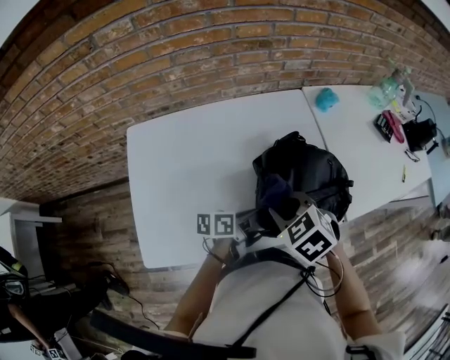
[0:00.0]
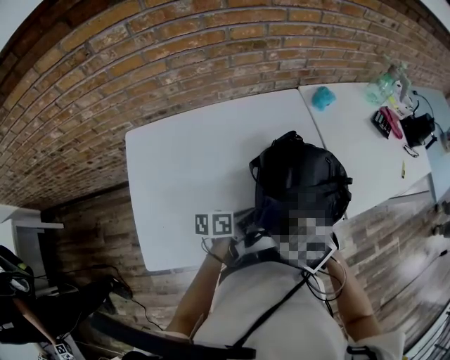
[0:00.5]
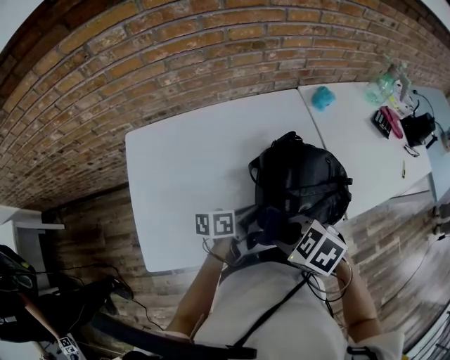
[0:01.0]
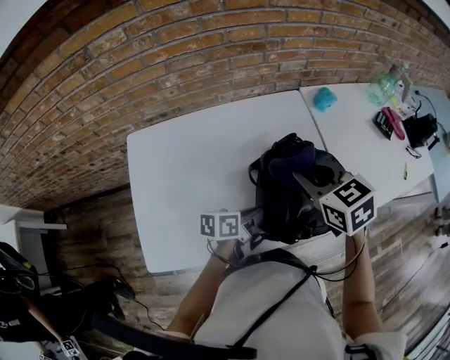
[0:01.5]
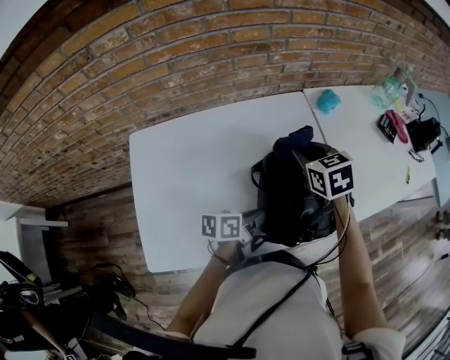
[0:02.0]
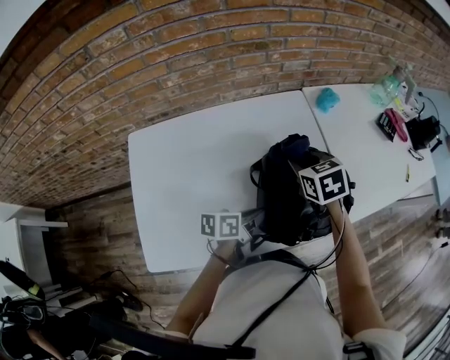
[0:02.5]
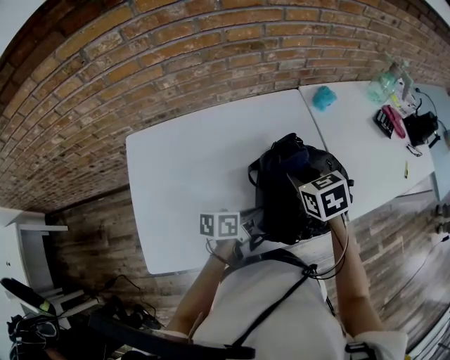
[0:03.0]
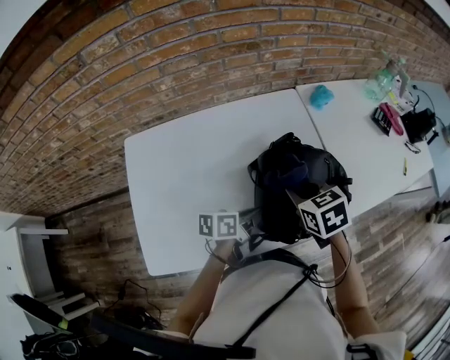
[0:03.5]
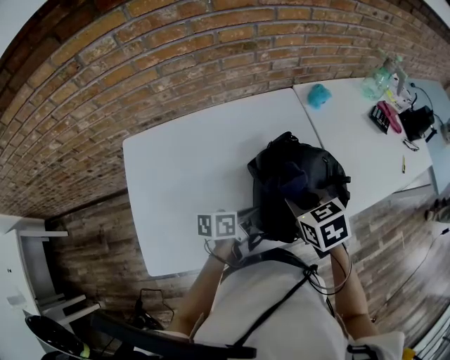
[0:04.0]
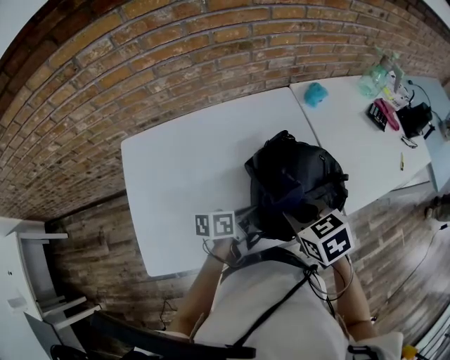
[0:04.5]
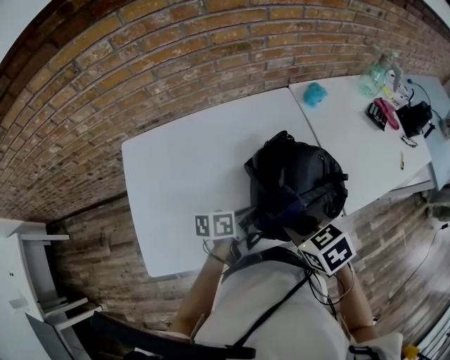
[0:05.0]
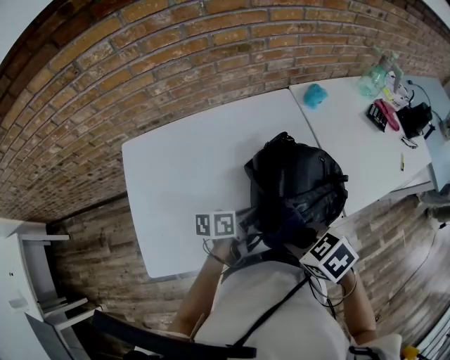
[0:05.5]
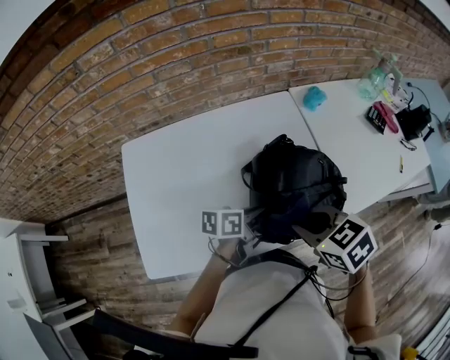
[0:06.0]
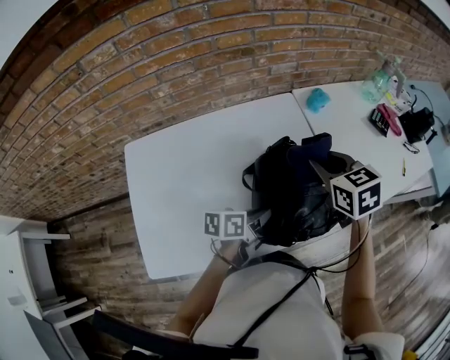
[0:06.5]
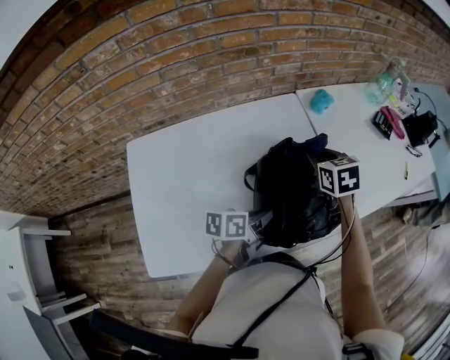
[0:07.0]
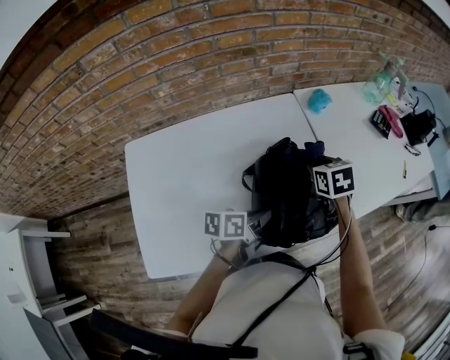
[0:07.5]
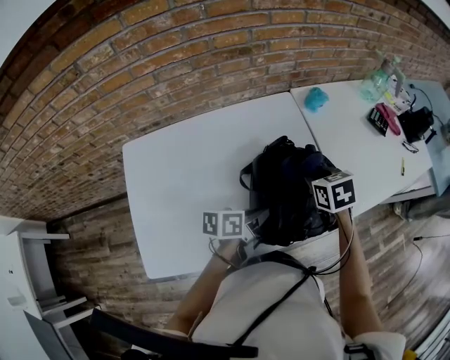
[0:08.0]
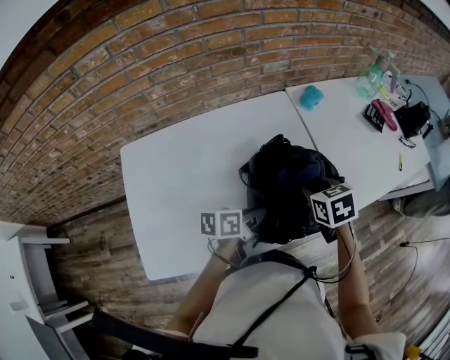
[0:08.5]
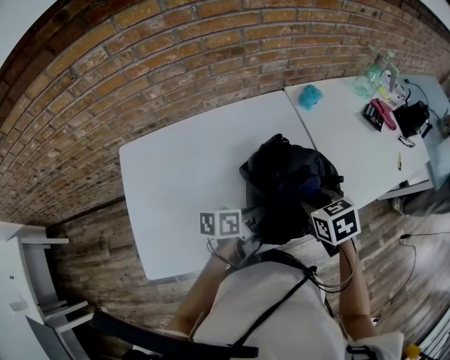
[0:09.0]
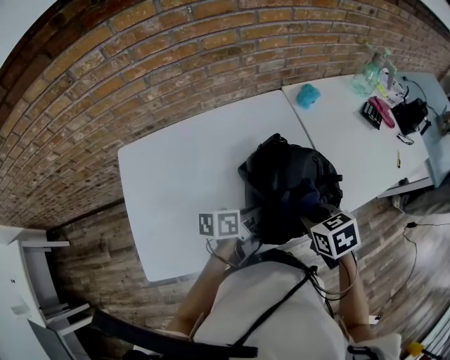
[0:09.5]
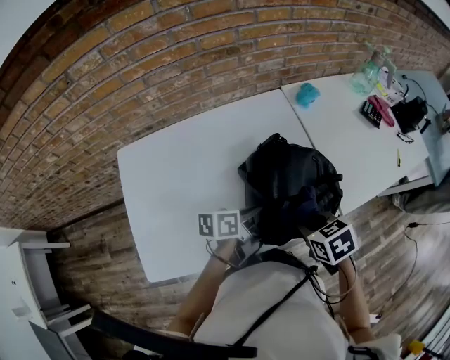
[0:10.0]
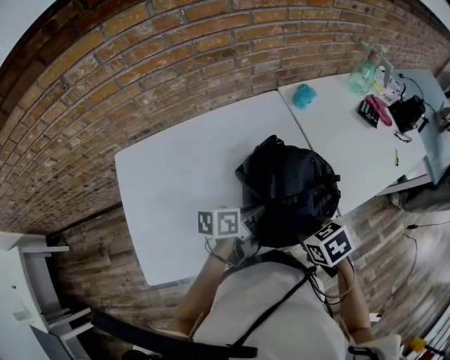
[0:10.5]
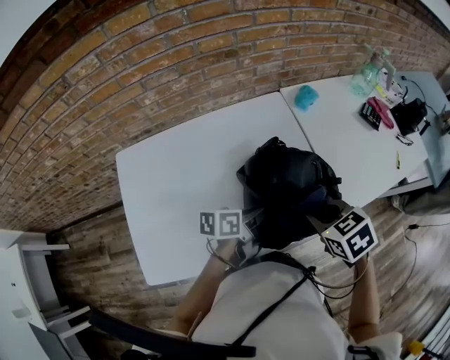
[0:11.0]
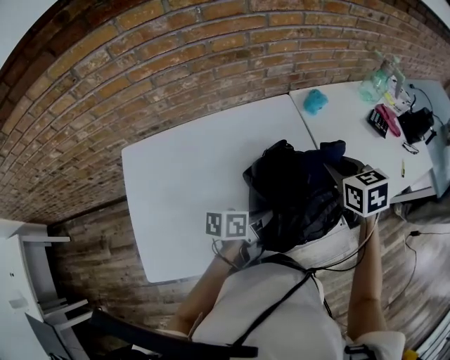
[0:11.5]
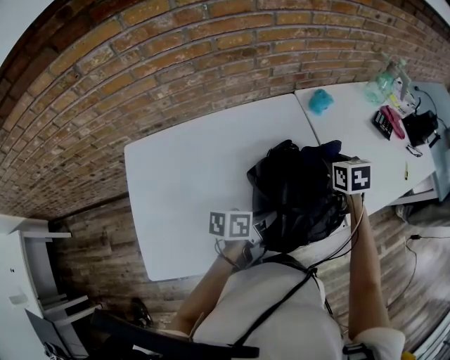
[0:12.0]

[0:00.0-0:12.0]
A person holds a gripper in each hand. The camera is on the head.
0:00.0 to 0:02.0: The right gripper reaches roughly 5 cm upward, then returns, and swivels roughly 30 degrees.
0:02.0 to 0:04.0: The right gripper shifts roughly 15 cm backward.
0:04.0 to 0:06.0: The right gripper heads backward and upward, covering about 10 cm.
0:06.0 to 0:08.0: The right gripper heads forward and downward, covering some 20 cm, and changes its angle by approximately 20 degrees.
0:08.0 to 0:10.0: The right gripper moves backward, roughly 15 cm.
0:10.0 to 0:12.0: The right gripper shifts roughly 20 cm forward, and changes its angle by roughly 20 degrees.

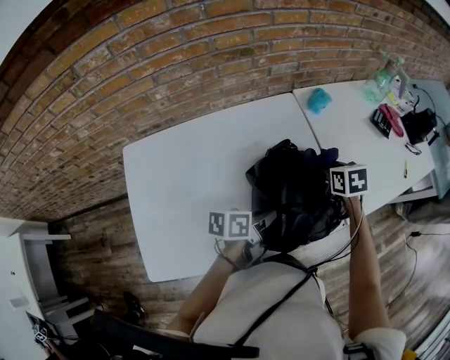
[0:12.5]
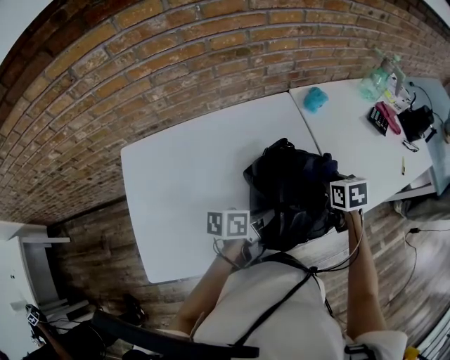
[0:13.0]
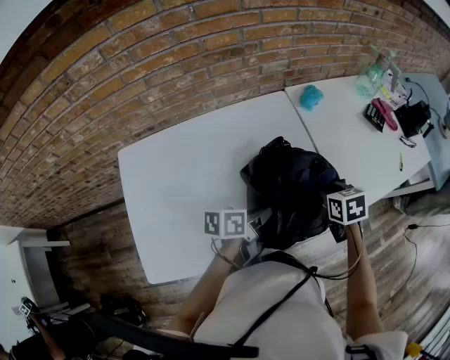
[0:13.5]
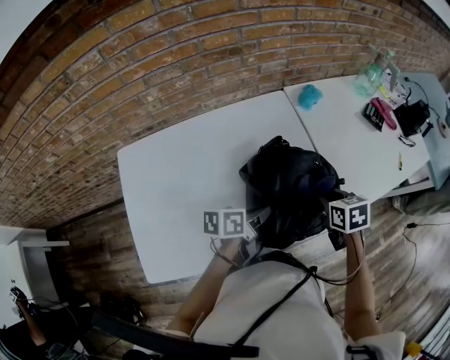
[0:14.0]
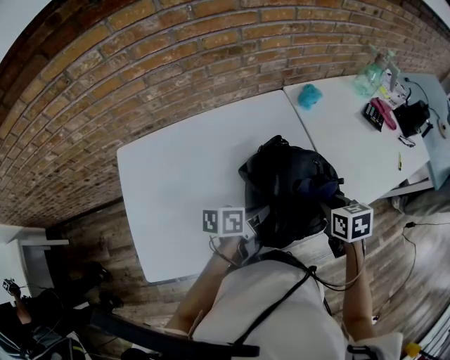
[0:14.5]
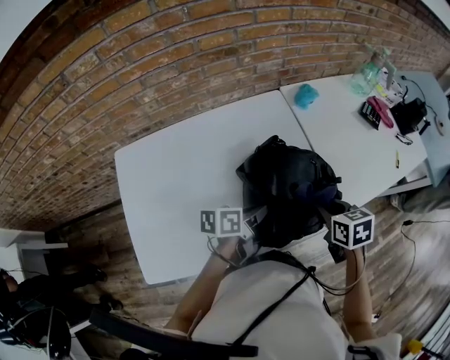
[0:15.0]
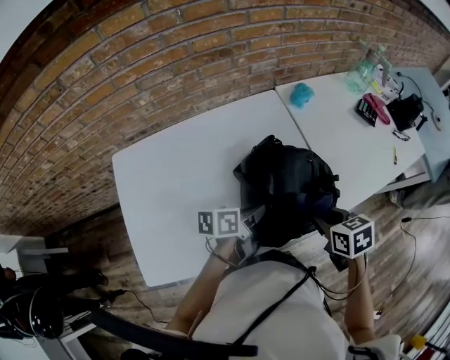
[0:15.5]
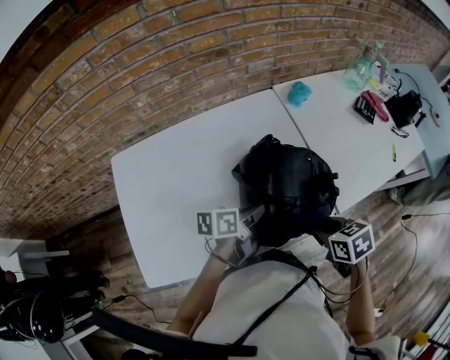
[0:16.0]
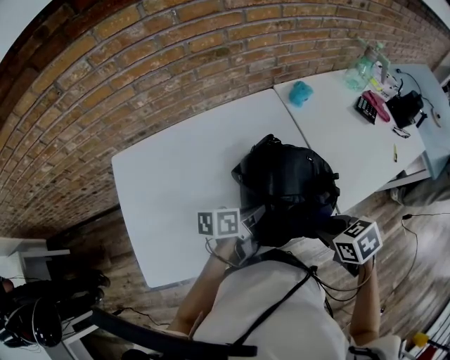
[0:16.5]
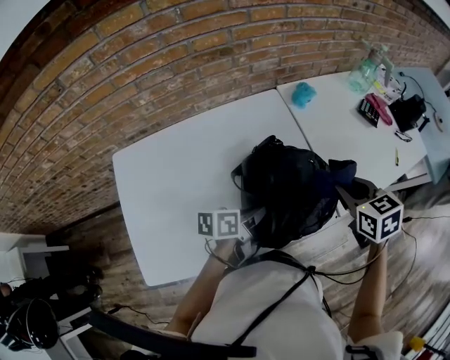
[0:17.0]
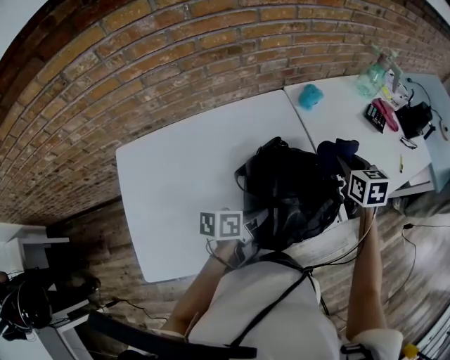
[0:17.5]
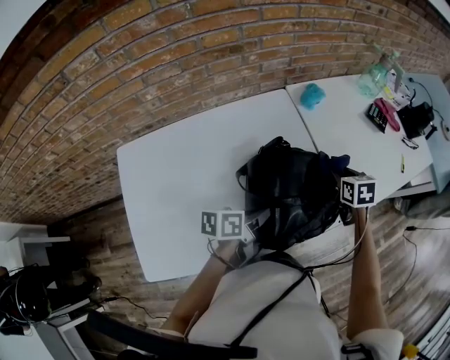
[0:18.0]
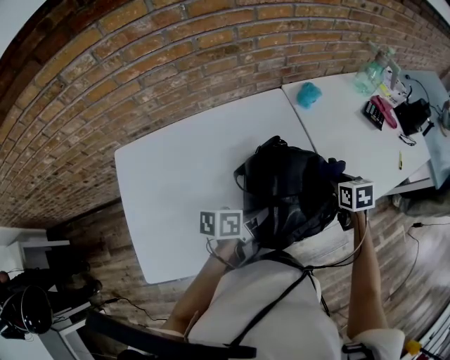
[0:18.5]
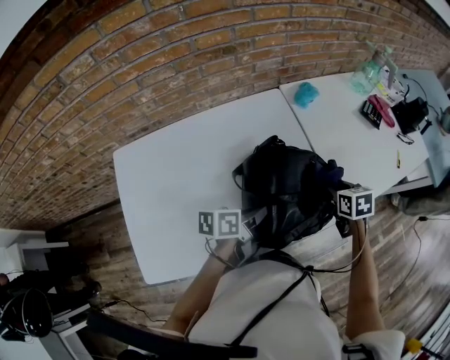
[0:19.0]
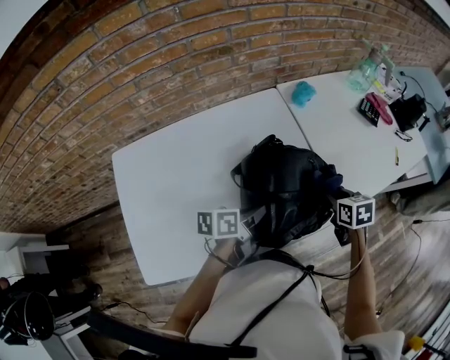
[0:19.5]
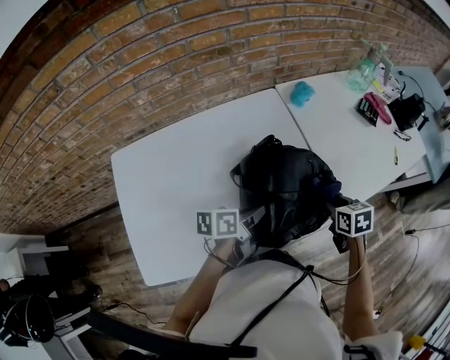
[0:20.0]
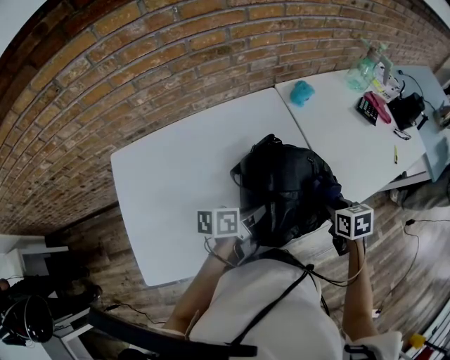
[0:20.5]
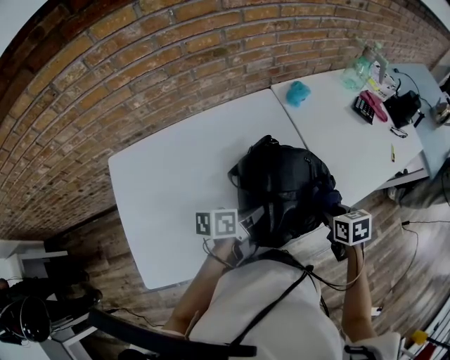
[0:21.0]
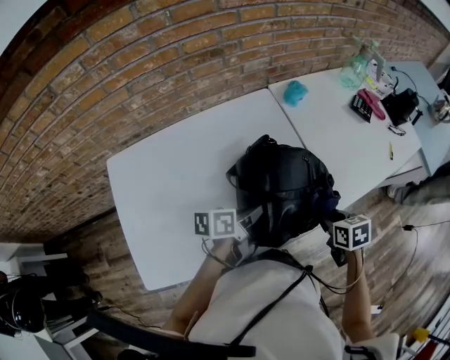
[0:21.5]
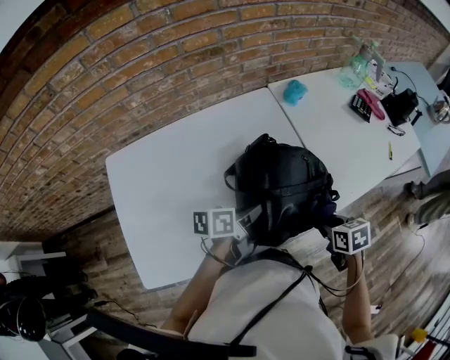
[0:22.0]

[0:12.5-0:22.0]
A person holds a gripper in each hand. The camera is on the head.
0:12.5 to 0:14.5: The right gripper shifts approximately 10 cm backward.
0:14.5 to 0:16.5: The right gripper goes about 10 cm backward, and turns by about 20 degrees.
0:16.5 to 0:18.0: The right gripper moves forward, approximately 20 cm, and swivels approximately 30 degrees.
0:18.0 to 0:20.0: The right gripper heads backward, covering approximately 10 cm.
0:20.0 to 0:22.0: The right gripper is displaced backward by about 10 cm.

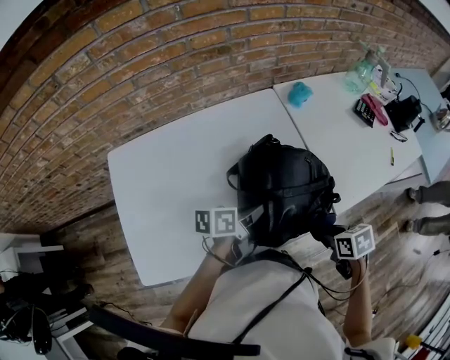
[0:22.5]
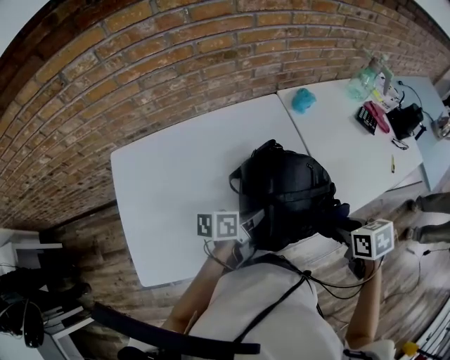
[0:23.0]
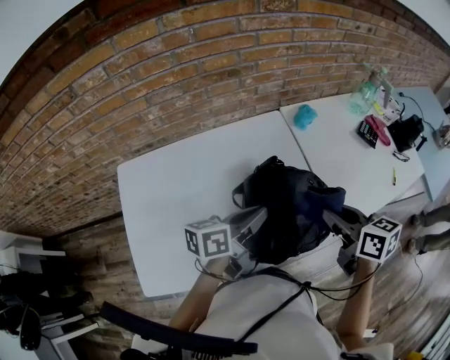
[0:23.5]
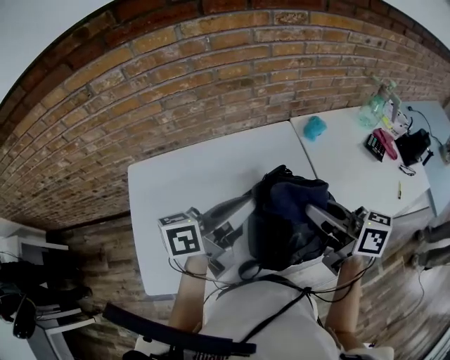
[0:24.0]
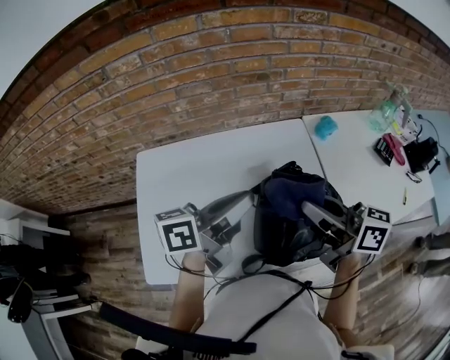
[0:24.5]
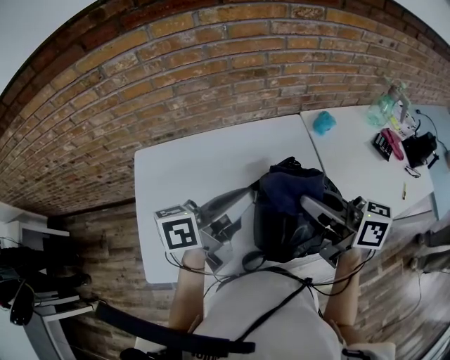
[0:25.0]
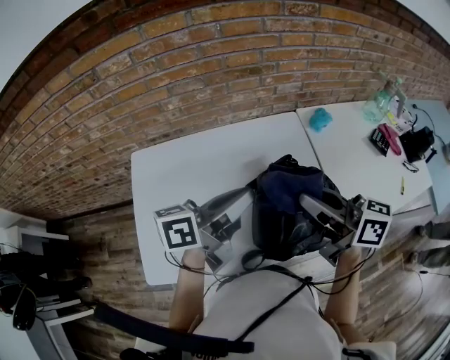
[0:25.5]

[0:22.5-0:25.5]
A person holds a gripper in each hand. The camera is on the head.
0:22.5 to 0:24.0: The left gripper is displaced upward by about 20 cm, and turns by roughly 30 degrees. The right gripper goes approximately 30 cm upward, to the left and forward, and tips its fingers upward by approximately 60 degrees.
0:24.0 to 0:25.5: The grippers make only small movements.

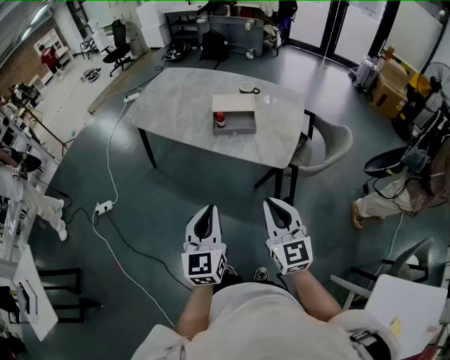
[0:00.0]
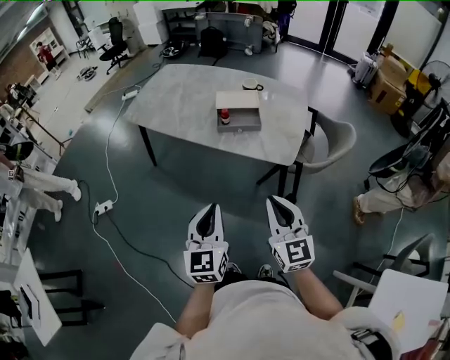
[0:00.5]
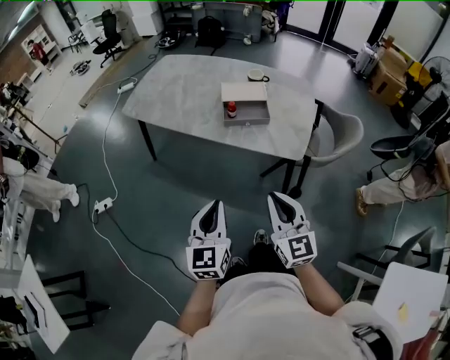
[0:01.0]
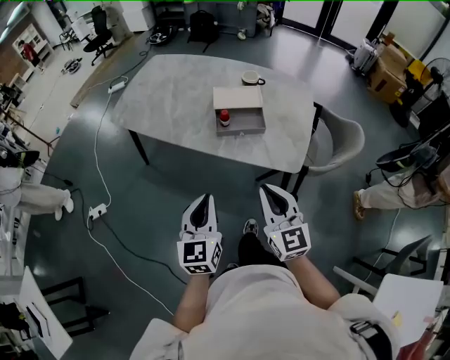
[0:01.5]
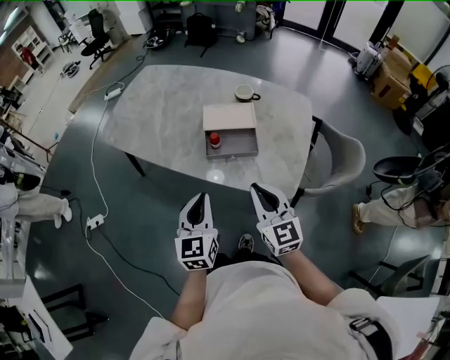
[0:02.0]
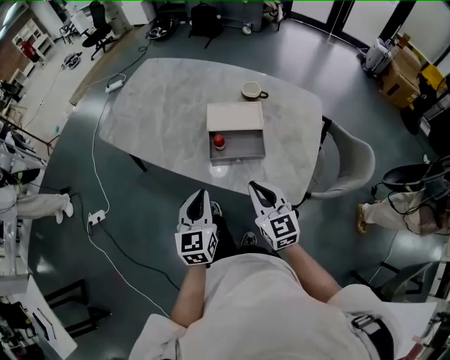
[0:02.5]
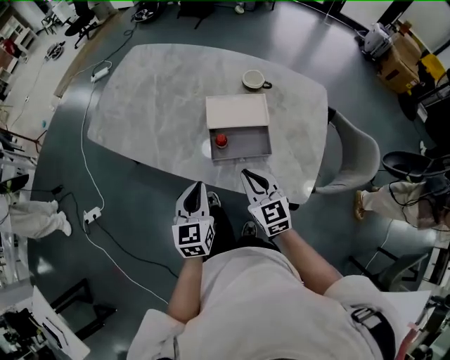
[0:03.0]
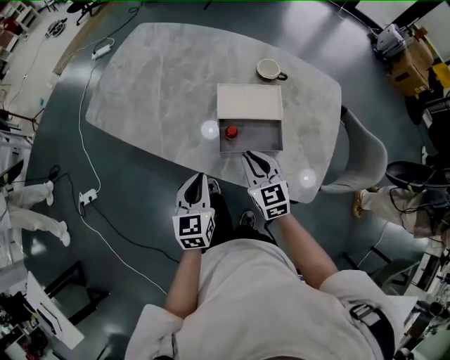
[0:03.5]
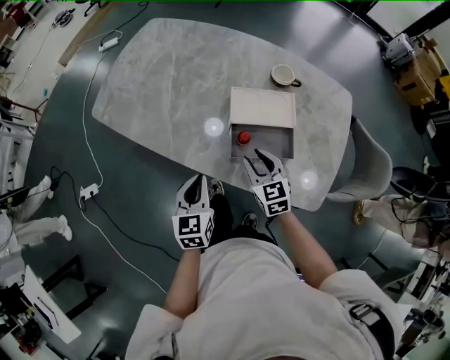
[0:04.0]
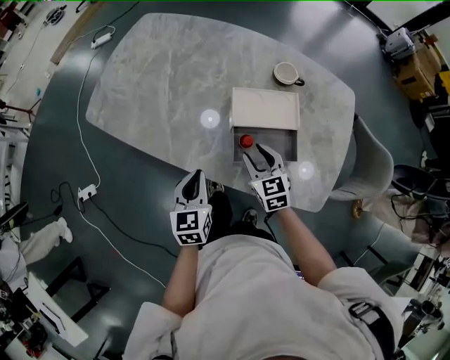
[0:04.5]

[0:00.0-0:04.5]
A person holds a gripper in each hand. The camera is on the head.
0:00.0 to 0:02.0: The two grippers go some 25 cm forward.
0:02.0 to 0:04.5: The right gripper moves forward and downward, approximately 30 cm, rotates approximately 20 degrees, and opens up. The left gripper shifts roughly 25 cm forward, downward and to the left.
